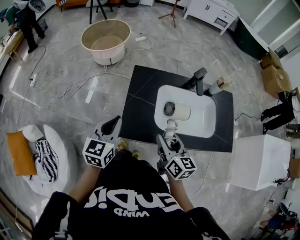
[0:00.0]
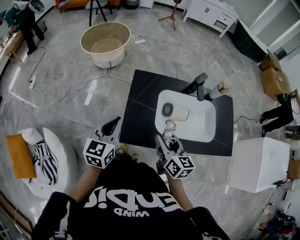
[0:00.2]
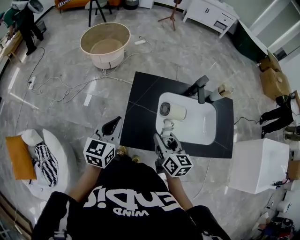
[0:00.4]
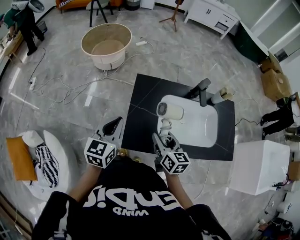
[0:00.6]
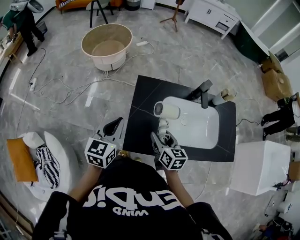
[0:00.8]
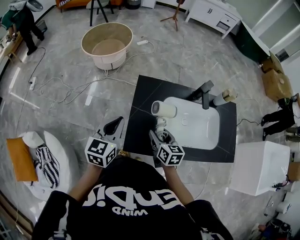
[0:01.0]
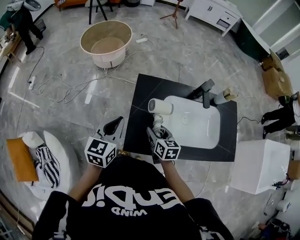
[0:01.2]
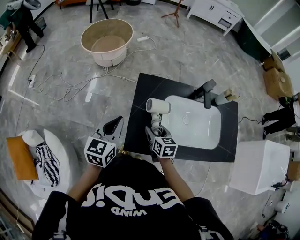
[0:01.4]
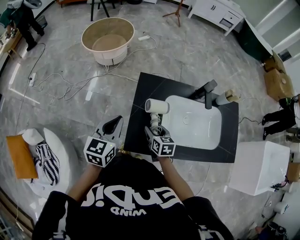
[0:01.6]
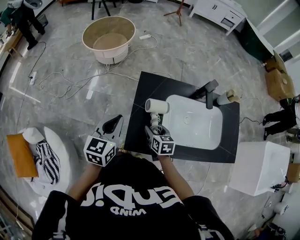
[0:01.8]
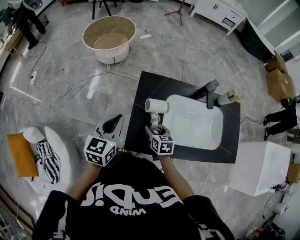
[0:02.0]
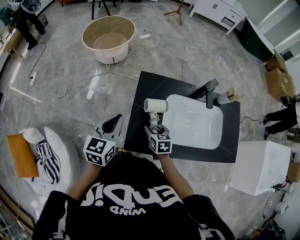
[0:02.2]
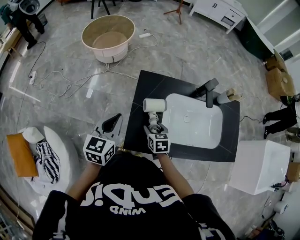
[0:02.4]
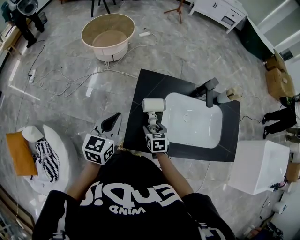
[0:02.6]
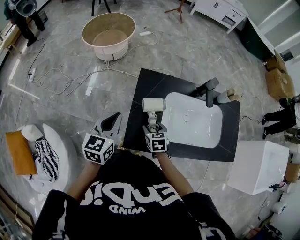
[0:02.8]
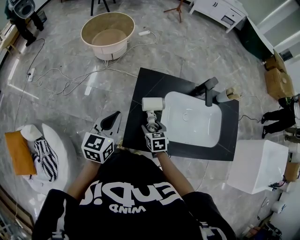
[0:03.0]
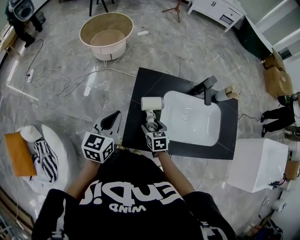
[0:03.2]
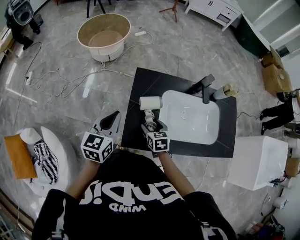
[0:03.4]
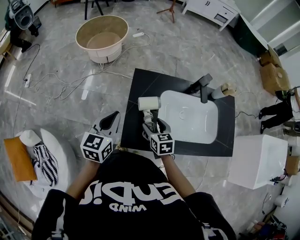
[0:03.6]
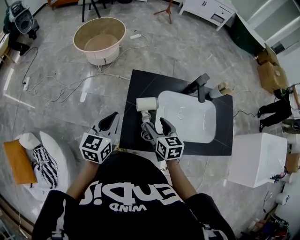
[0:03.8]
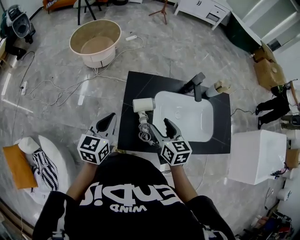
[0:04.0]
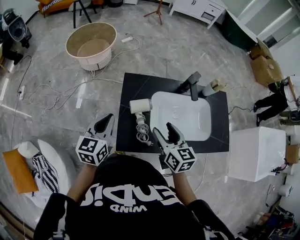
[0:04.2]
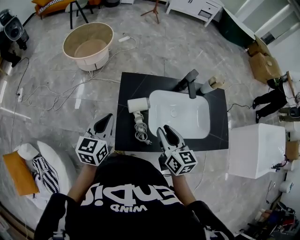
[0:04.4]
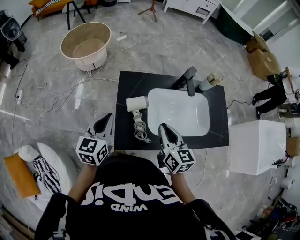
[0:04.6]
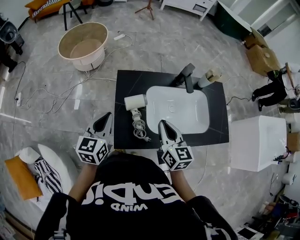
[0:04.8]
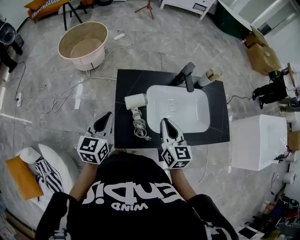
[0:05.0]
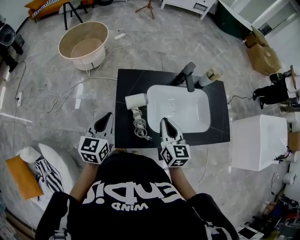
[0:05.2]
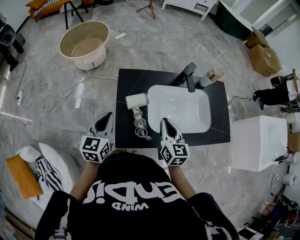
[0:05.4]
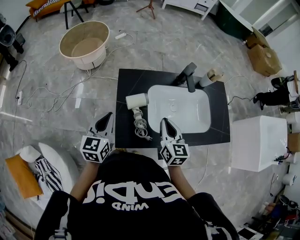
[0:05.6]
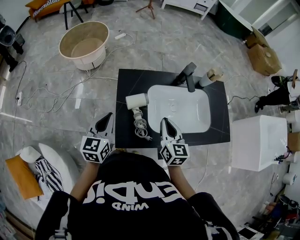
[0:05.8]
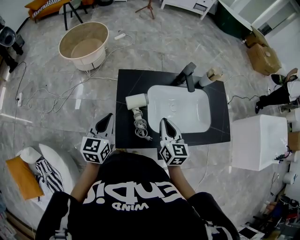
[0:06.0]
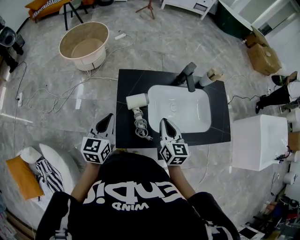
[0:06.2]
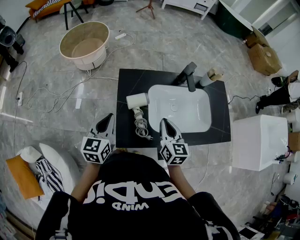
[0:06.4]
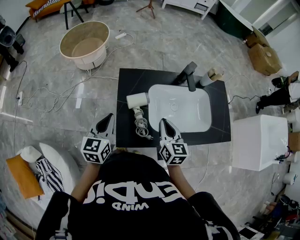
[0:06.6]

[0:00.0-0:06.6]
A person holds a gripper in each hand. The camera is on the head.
0:00.0 to 0:01.6: The left gripper shifts approximately 10 cm forward. Meanwhile the right gripper is displaced downward, forward and to the left by roughly 20 cm, and rotates some 20 degrees.
0:01.6 to 0:03.2: The grippers move only a little.
0:03.2 to 0:05.0: The right gripper heads upward and to the right, covering some 25 cm, tips its fingers upward by some 30 degrees, and closes up.
0:05.0 to 0:06.6: The grippers move only a little.

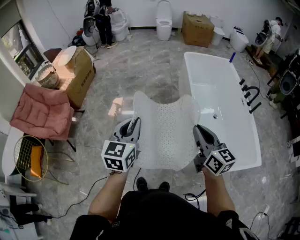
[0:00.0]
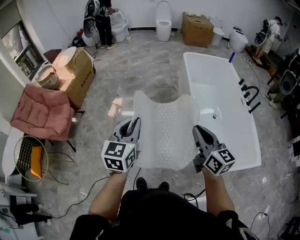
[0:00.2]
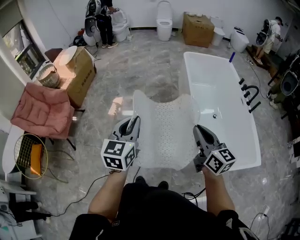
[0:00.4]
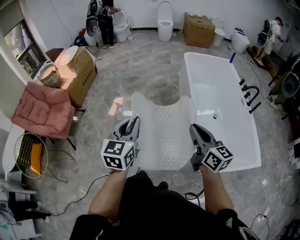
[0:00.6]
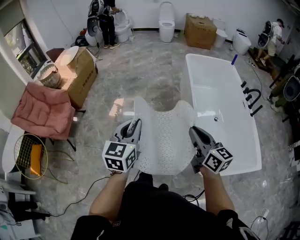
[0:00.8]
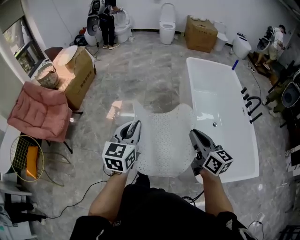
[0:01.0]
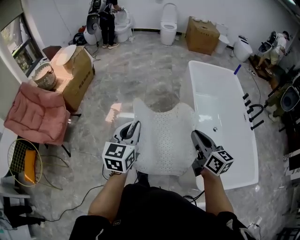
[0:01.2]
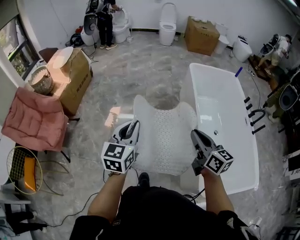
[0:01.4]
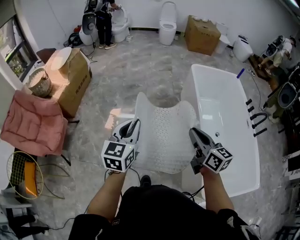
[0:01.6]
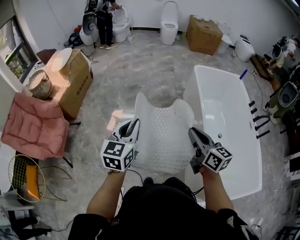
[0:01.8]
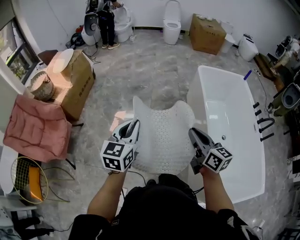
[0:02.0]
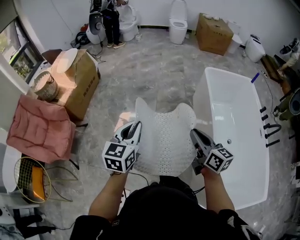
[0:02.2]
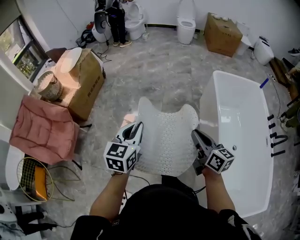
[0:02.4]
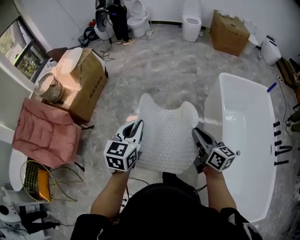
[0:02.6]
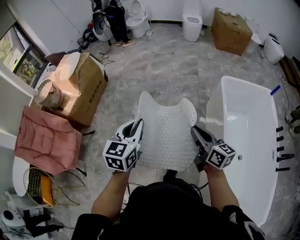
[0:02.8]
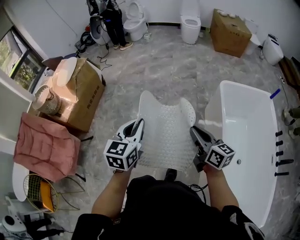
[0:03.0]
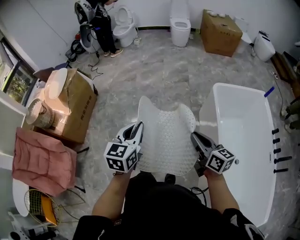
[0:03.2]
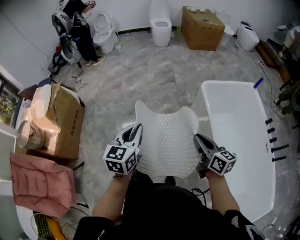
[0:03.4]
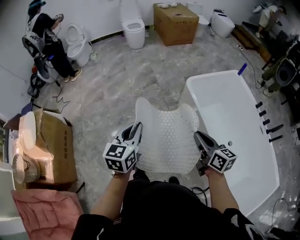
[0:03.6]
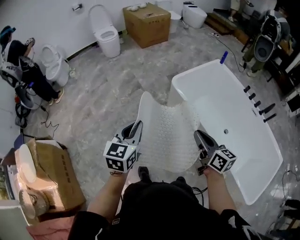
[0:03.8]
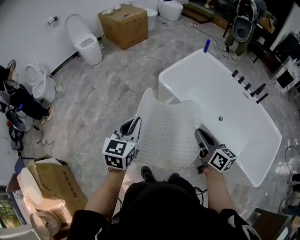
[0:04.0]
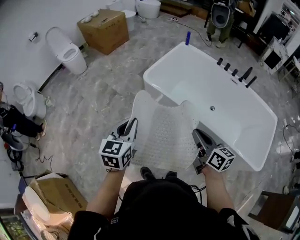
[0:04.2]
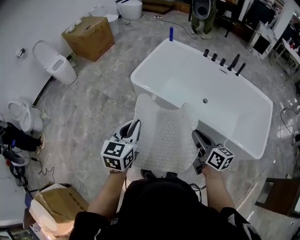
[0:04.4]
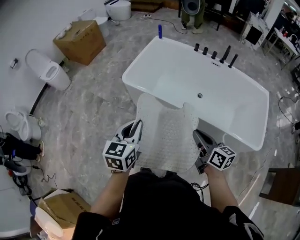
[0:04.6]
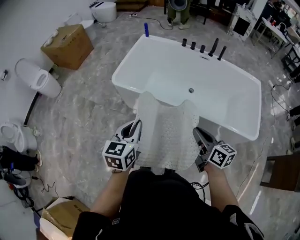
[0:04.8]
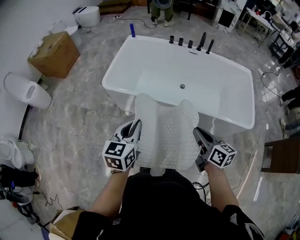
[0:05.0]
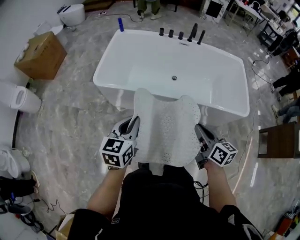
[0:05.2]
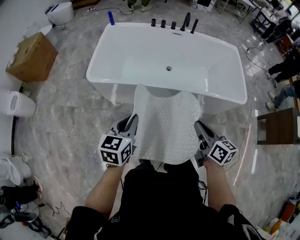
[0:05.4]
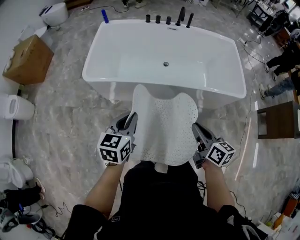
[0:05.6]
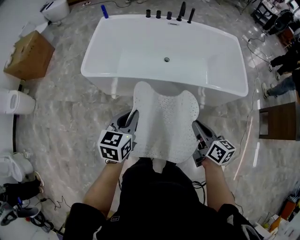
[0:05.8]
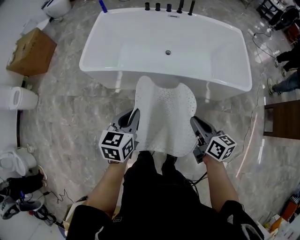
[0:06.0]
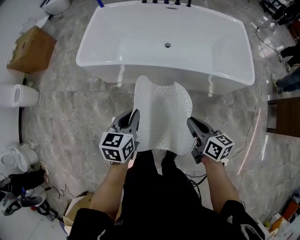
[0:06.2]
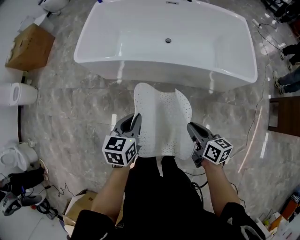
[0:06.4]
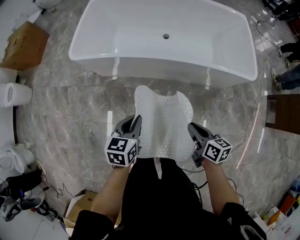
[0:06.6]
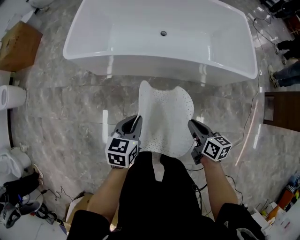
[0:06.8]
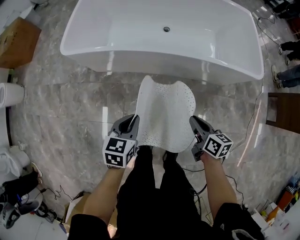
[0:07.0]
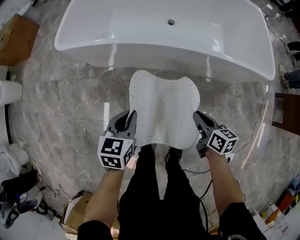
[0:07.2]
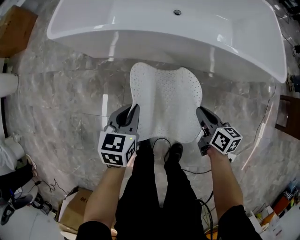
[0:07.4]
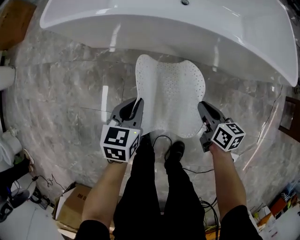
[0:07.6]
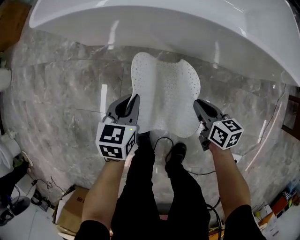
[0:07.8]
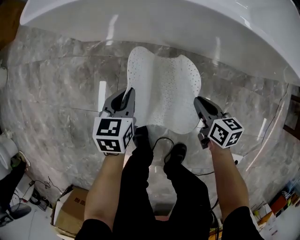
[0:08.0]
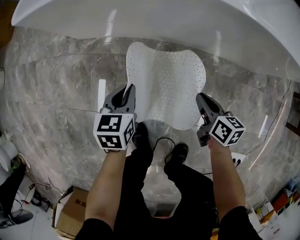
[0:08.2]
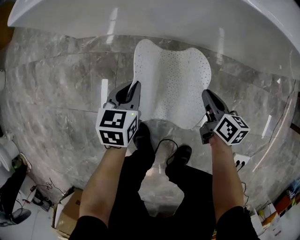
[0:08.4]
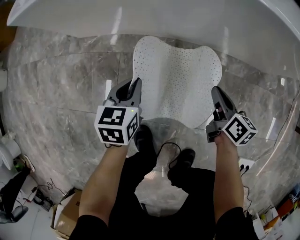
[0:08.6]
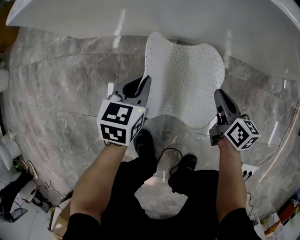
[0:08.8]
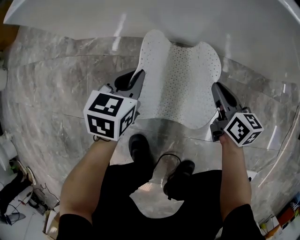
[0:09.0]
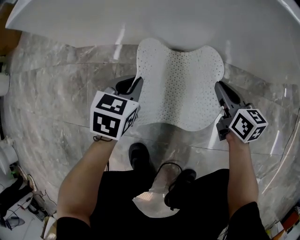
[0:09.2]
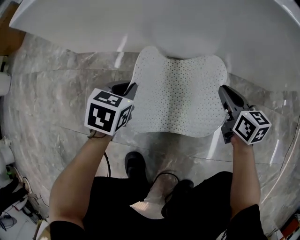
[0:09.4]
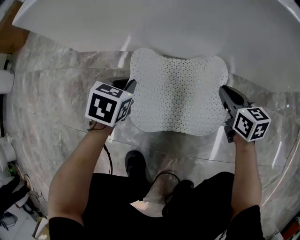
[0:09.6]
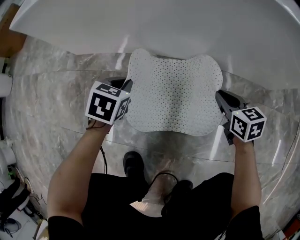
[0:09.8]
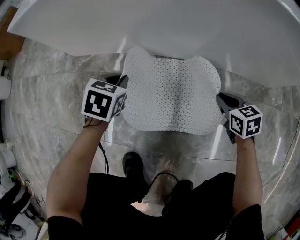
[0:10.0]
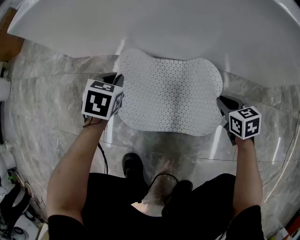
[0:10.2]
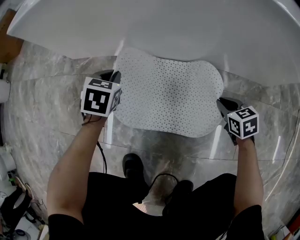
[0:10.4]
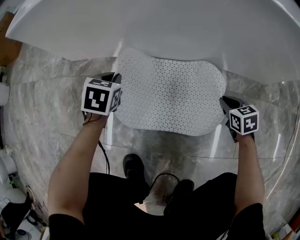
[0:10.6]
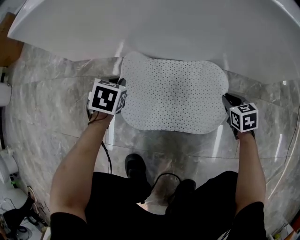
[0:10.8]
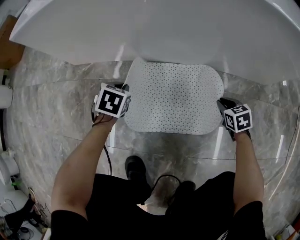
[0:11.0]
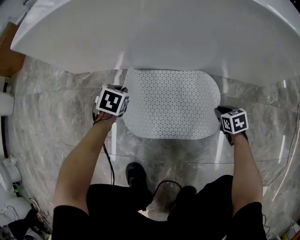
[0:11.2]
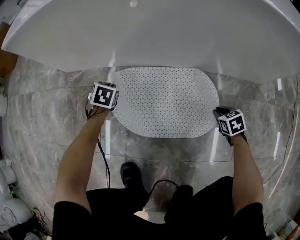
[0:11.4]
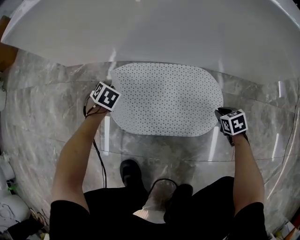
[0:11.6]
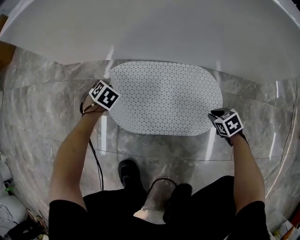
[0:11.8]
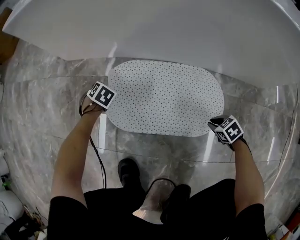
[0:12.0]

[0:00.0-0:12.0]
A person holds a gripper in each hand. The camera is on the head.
0:00.0 to 0:01.6: Both grippers move forward, about 25 cm.
0:01.6 to 0:03.0: The pair of grippers is taken forward, about 40 cm.
0:03.0 to 0:04.4: The left gripper changes place by approximately 30 cm, and swivels approximately 70 degrees; the right gripper moves approximately 10 cm, and turns by some 70 degrees.
0:04.4 to 0:06.0: The left gripper shifts by roughly 20 cm, and rotates approximately 30 degrees. Meanwhile the right gripper ends up about 20 cm from where it was, and rotates roughly 20 degrees.
0:06.0 to 0:07.6: The two grippers go approximately 40 cm downward.
0:07.6 to 0:09.0: The two grippers go approximately 25 cm downward.
0:09.0 to 0:10.4: The left gripper goes roughly 10 cm downward and forward, and turns by roughly 20 degrees. The right gripper travels downward and to the right by some 15 cm, and rotates about 40 degrees.
0:10.4 to 0:12.0: Both grippers move downward, about 15 cm. The left gripper rotates approximately 30 degrees. Meanwhile the right gripper swivels about 30 degrees.

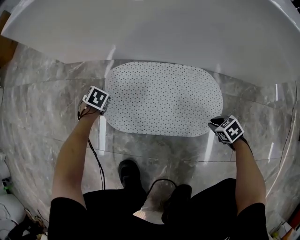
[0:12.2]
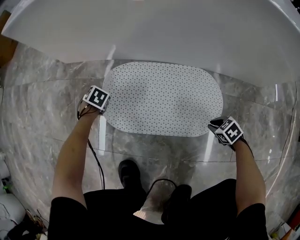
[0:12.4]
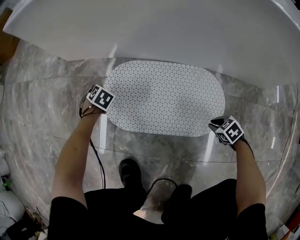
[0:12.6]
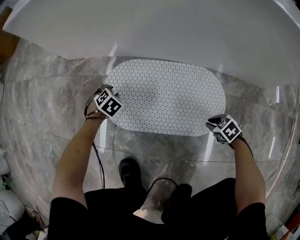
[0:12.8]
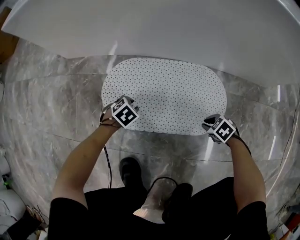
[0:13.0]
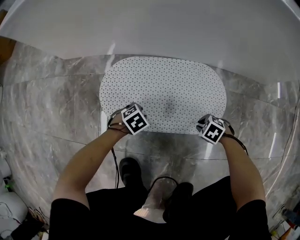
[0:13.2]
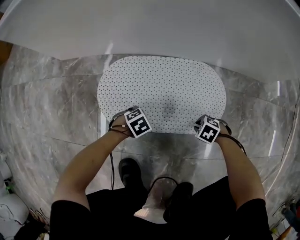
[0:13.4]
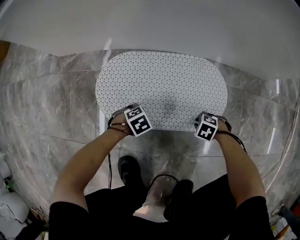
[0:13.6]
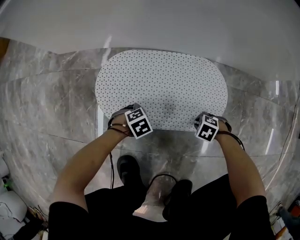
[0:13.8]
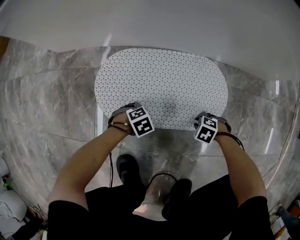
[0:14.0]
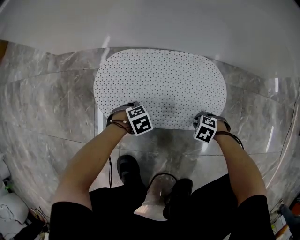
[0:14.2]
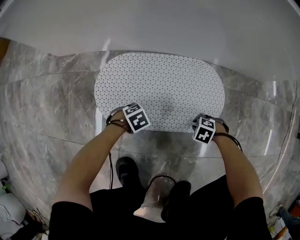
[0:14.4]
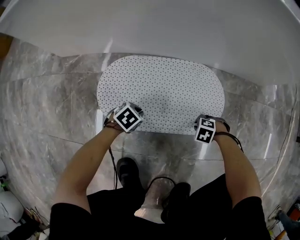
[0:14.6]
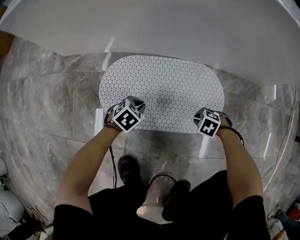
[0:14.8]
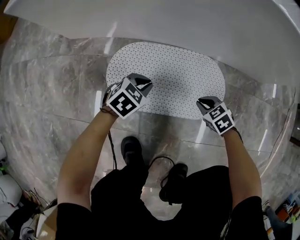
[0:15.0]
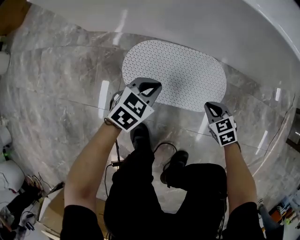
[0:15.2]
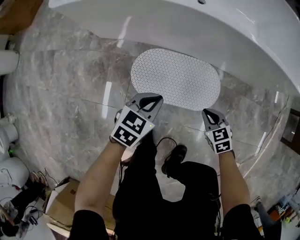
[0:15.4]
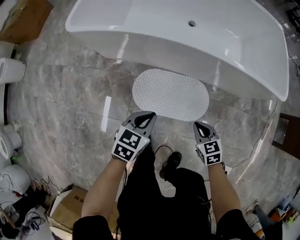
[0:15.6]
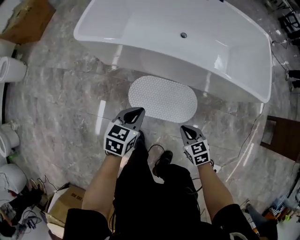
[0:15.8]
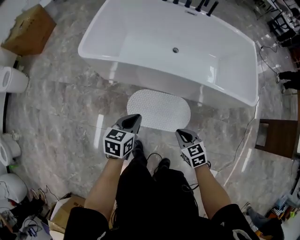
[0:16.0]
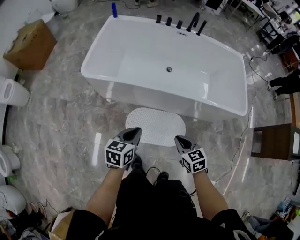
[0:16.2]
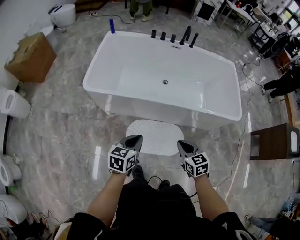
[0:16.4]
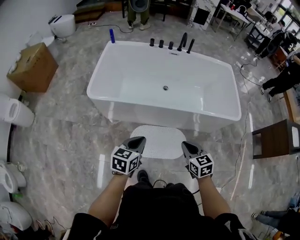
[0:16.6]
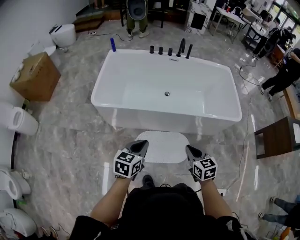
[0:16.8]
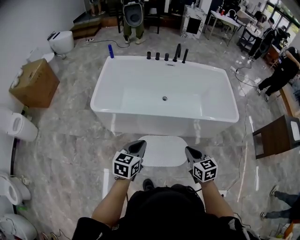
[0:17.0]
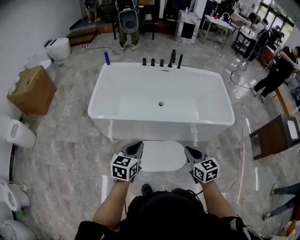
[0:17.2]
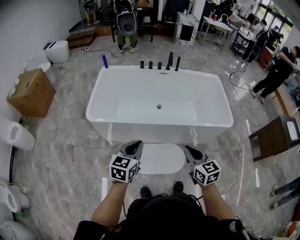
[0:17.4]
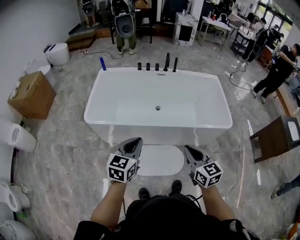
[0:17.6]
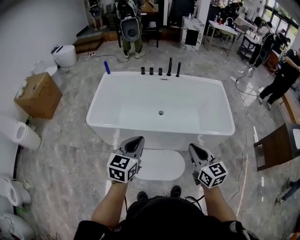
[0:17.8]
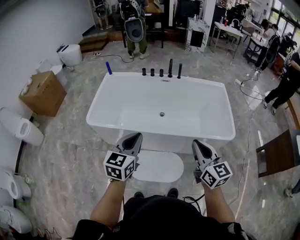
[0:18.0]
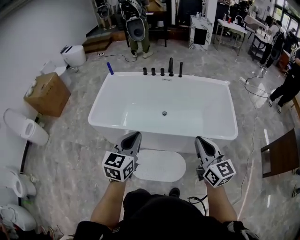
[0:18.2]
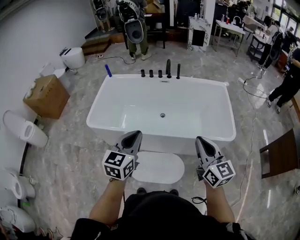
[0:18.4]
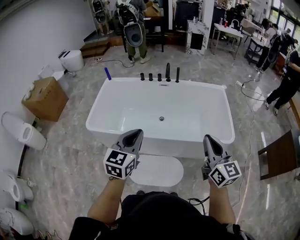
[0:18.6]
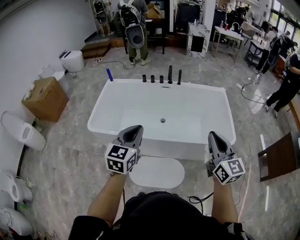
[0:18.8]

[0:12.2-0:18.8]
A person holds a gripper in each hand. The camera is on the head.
0:12.2 to 0:13.8: The right gripper ends up roughly 10 cm from where it was, and swivels about 30 degrees. The left gripper moves some 25 cm, turns by approximately 40 degrees, and opens up.
0:13.8 to 0:15.4: Both grippers travel together upward, roughly 50 cm. The right gripper turns by about 50 degrees, while the left gripper points its fingers approximately 40 degrees further upward, and closes.
0:15.4 to 0:17.2: The grippers both shift upward by about 60 cm. The right gripper rotates roughly 30 degrees. Meanwhile the left gripper rotates approximately 20 degrees.
0:17.2 to 0:18.8: Both grippers move to the right, upward and forward, some 30 cm. The right gripper rotates roughly 30 degrees.
